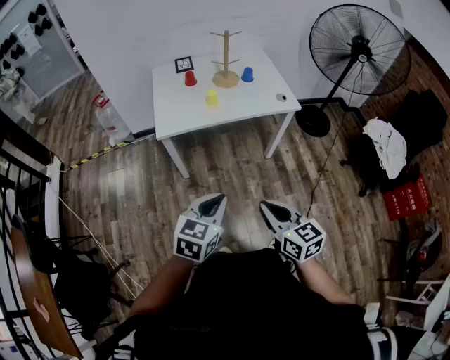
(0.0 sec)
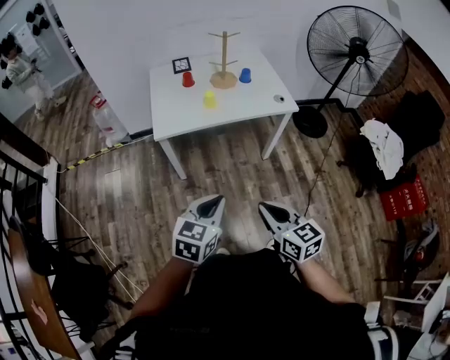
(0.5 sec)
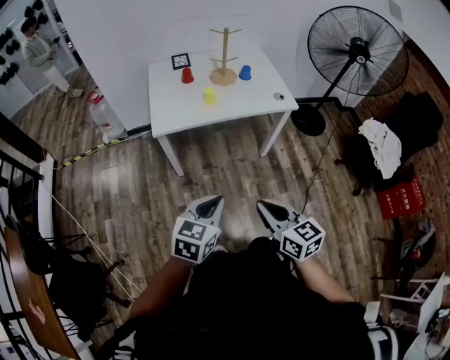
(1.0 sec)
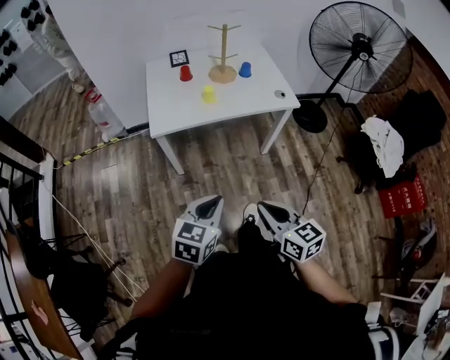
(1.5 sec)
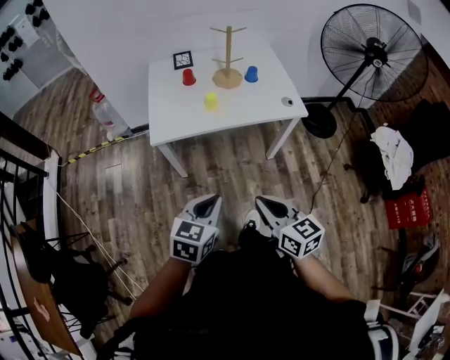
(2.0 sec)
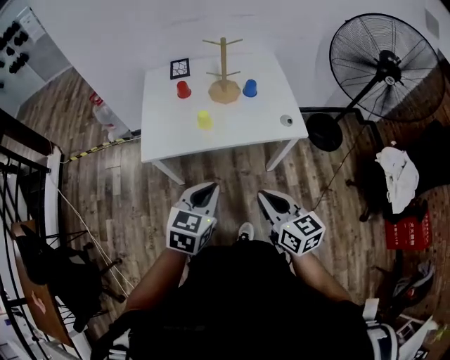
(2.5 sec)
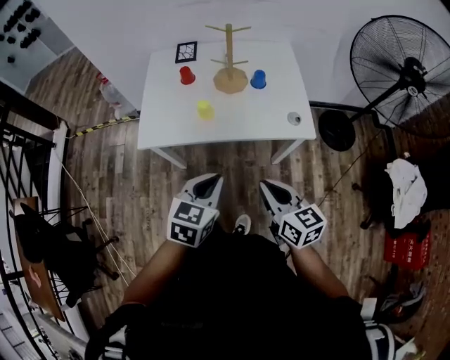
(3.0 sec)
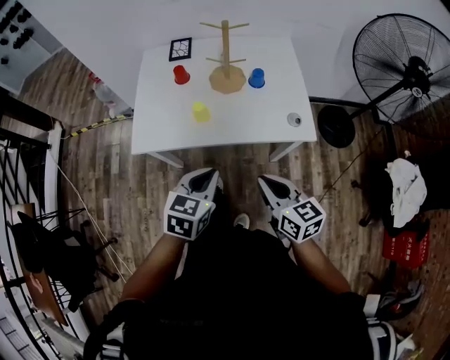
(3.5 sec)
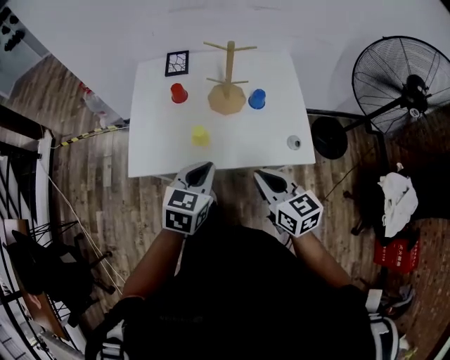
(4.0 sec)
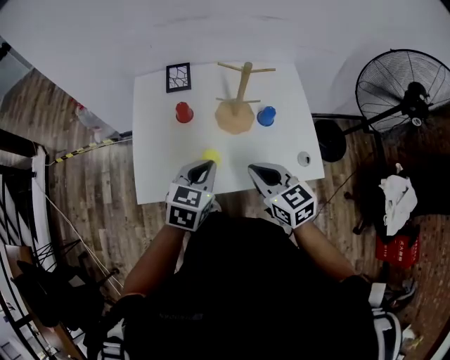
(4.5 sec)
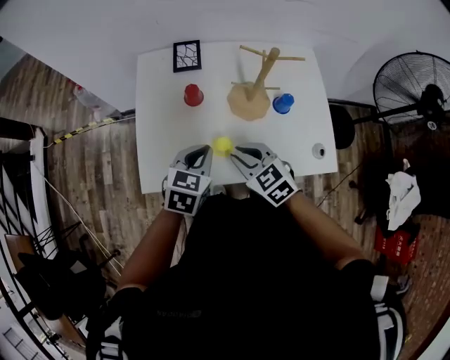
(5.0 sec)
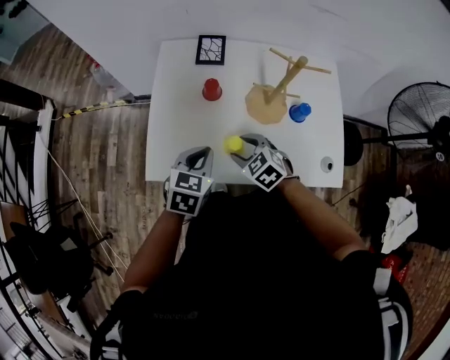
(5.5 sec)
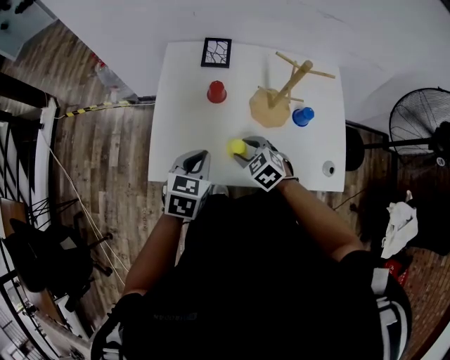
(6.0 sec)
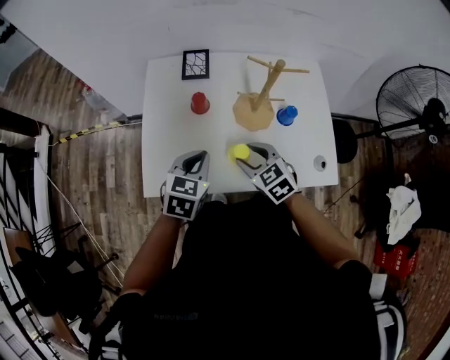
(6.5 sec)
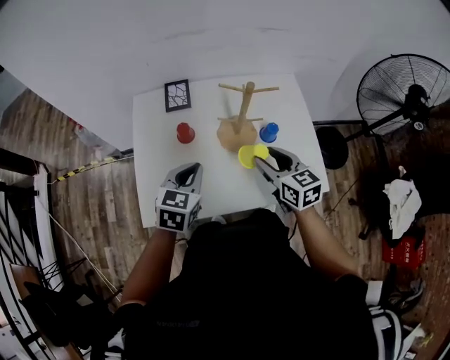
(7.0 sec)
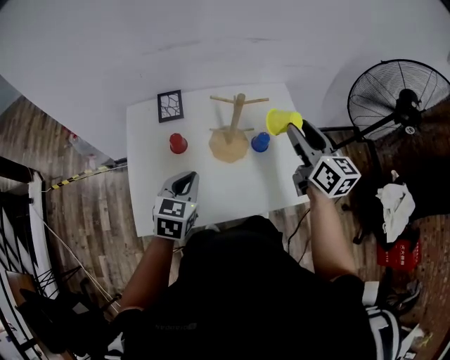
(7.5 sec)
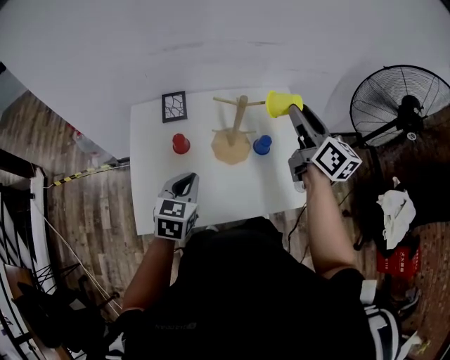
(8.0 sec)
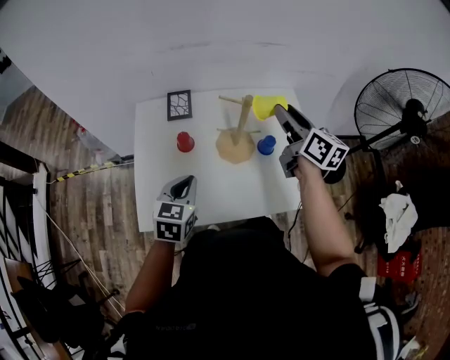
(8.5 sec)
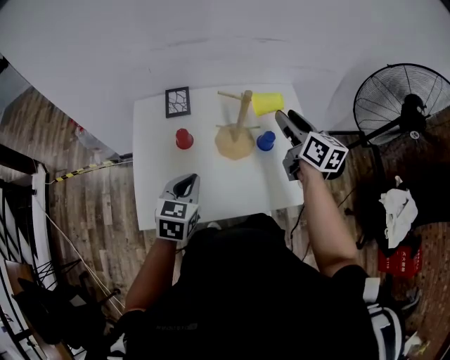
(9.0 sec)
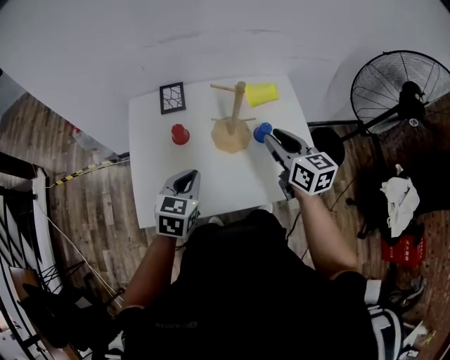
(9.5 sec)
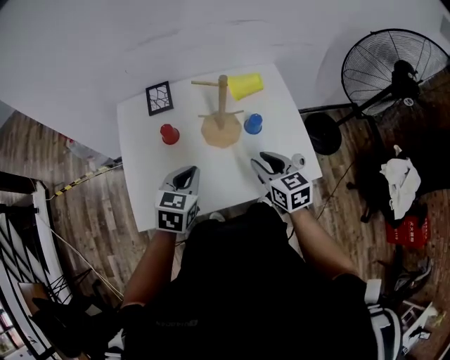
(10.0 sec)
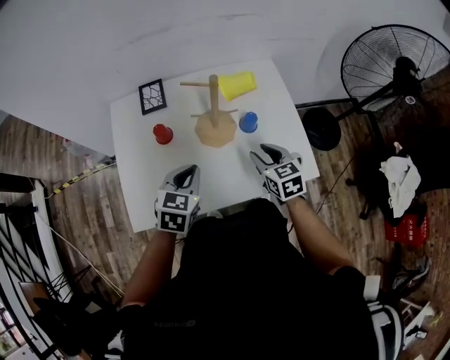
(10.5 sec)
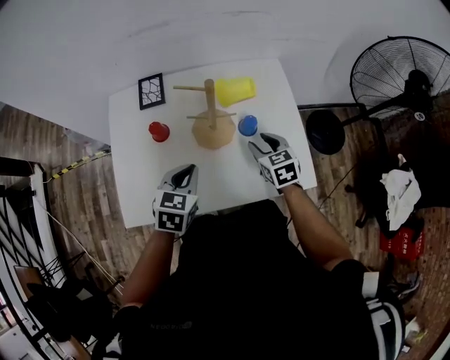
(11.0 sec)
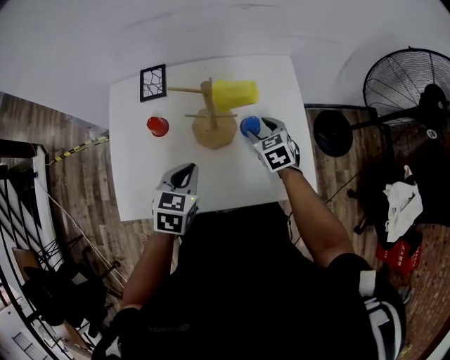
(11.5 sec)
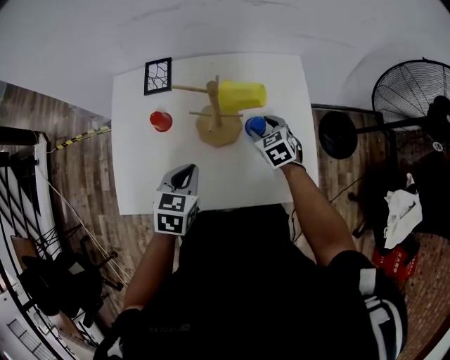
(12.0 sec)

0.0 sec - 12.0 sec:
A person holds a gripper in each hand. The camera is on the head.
0.0 sec - 2.0 sec: The two grippers go roughly 10 cm forward.
2.0 sec - 4.0 sec: The grippers both shift forward by approximately 35 cm.
4.0 sec - 6.0 sec: The right gripper travels forward, downward and to the left by roughly 30 cm, points its fingers roughly 30 degrees further downward, and opens its fingers. The left gripper goes about 20 cm forward, to the left and downward.
6.0 sec - 8.0 sec: The right gripper moves upward and to the right, some 40 cm, and points its fingers some 50 degrees further upward. Meanwhile the left gripper heads upward, to the right and forward, covering roughly 10 cm.
8.0 sec - 10.0 sec: The right gripper travels downward and backward by about 25 cm, and turns by approximately 40 degrees.
10.0 sec - 12.0 sec: The right gripper heads forward and downward, covering approximately 20 cm, turns by about 30 degrees, and opens up, while the left gripper shifts roughly 5 cm to the right.

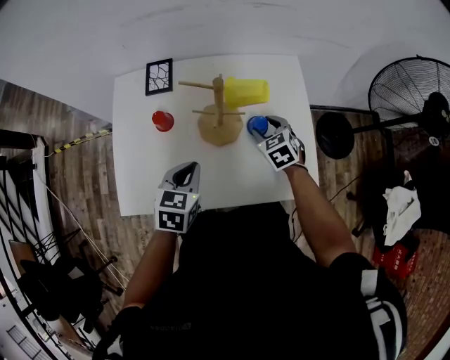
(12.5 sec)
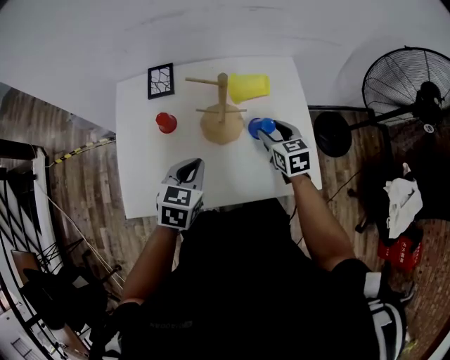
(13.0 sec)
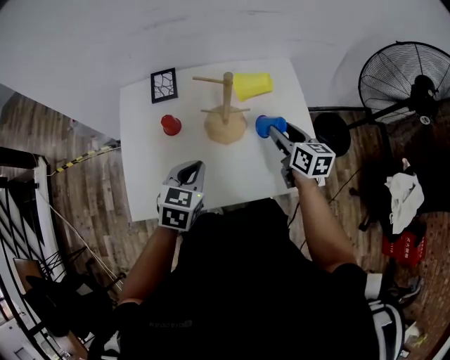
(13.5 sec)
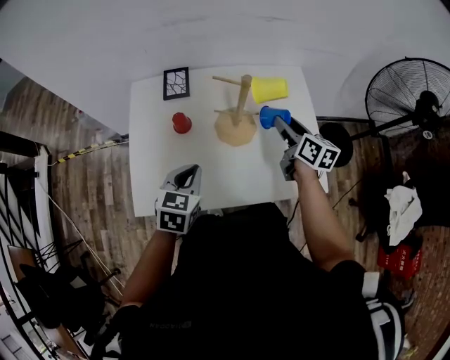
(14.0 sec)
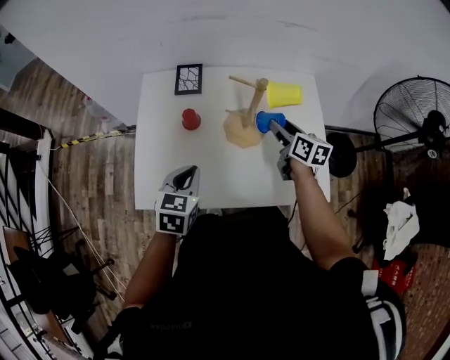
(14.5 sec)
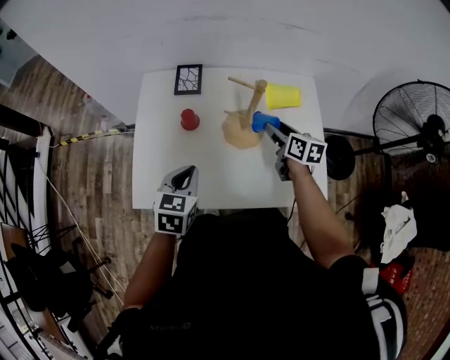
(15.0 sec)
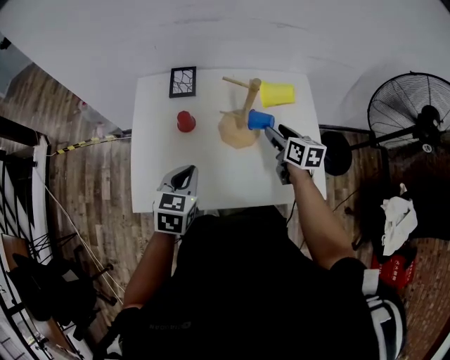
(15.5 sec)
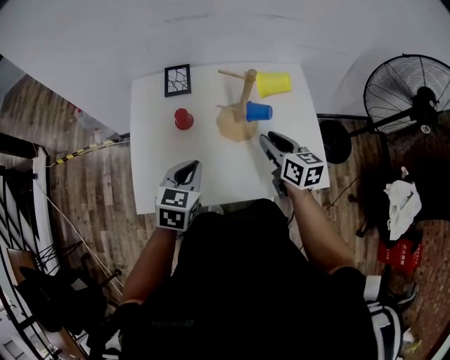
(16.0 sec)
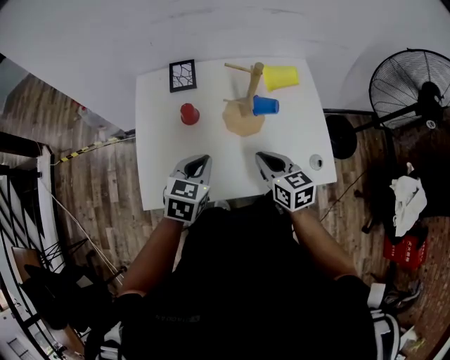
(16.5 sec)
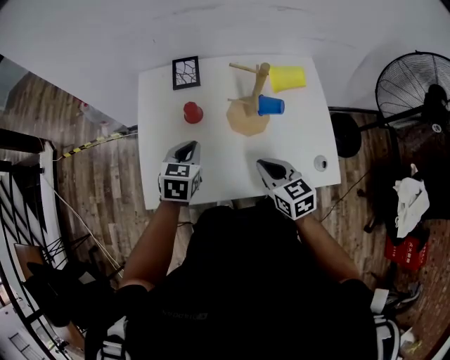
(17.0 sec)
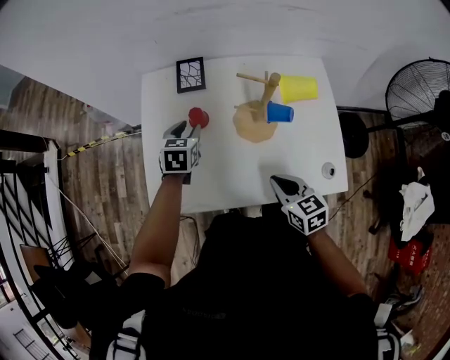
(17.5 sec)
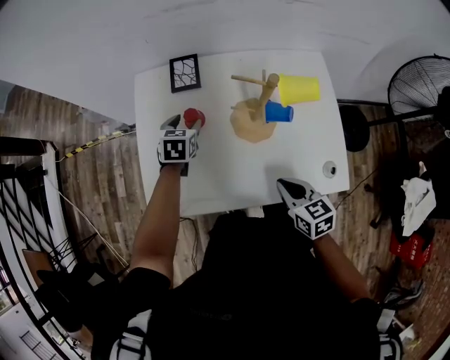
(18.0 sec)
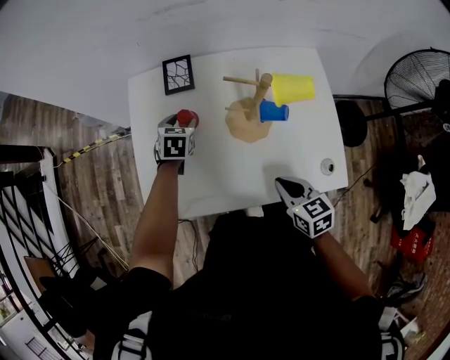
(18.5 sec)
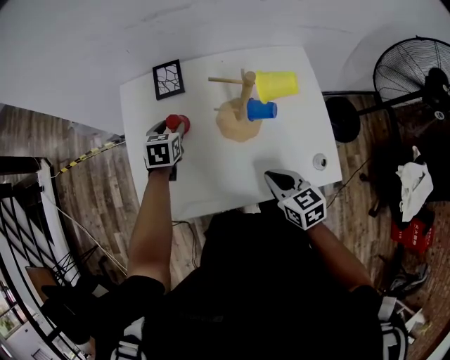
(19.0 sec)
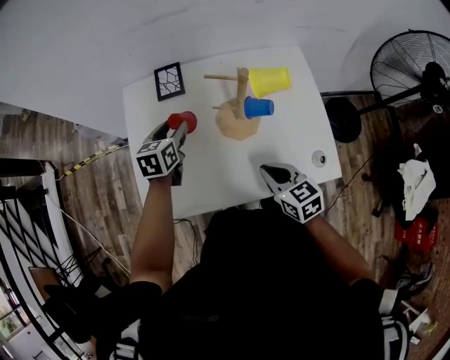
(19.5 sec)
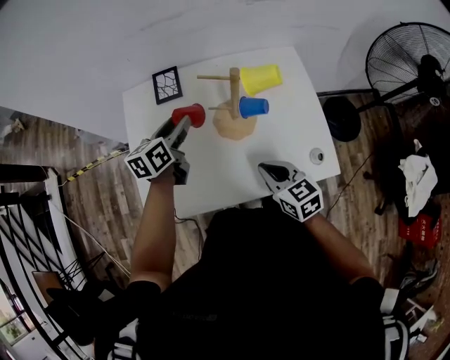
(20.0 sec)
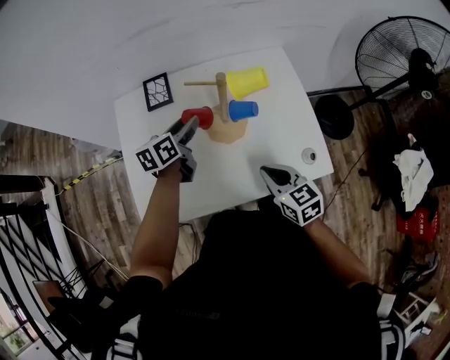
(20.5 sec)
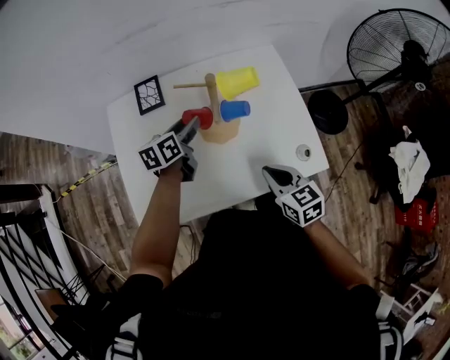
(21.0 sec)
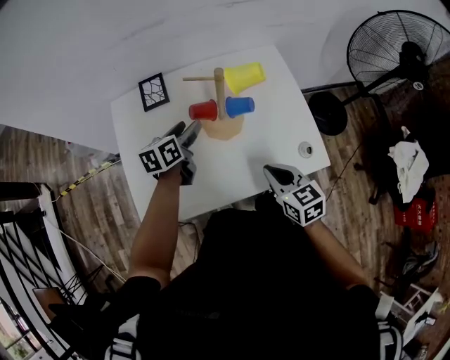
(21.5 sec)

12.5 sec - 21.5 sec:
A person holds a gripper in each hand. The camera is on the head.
12.5 sec - 14.5 sec: The left gripper goes approximately 10 cm to the left. Meanwhile the right gripper is displaced upward by approximately 10 cm, and rolls clockwise, seen from behind, by about 50 degrees.
14.5 sec - 17.0 sec: The right gripper travels backward and to the left by about 20 cm, swivels roughly 30 degrees, and closes up; the left gripper shifts approximately 5 cm forward.
17.0 sec - 19.5 sec: The left gripper is displaced forward by some 10 cm, and opens.
19.5 sec - 21.5 sec: The right gripper changes place by about 5 cm; the left gripper shifts roughly 10 cm to the right, and rotates about 20 degrees.

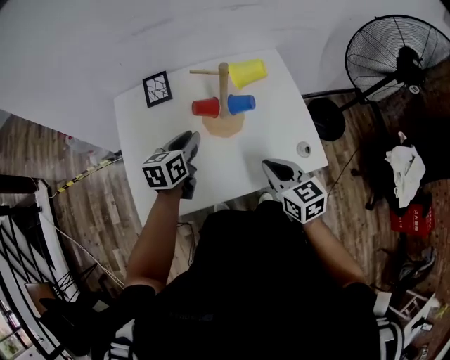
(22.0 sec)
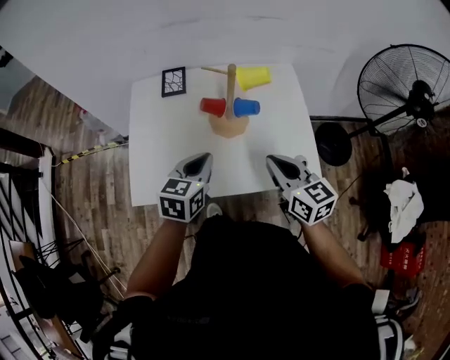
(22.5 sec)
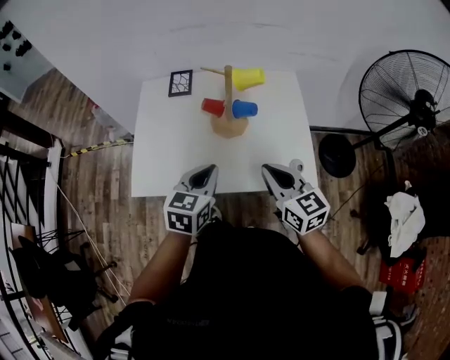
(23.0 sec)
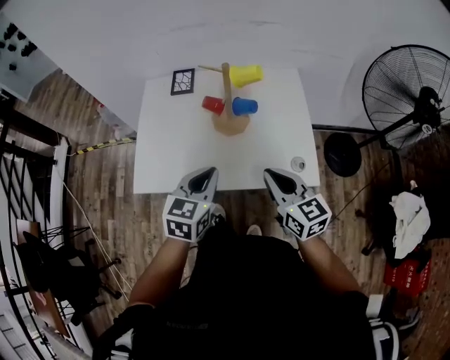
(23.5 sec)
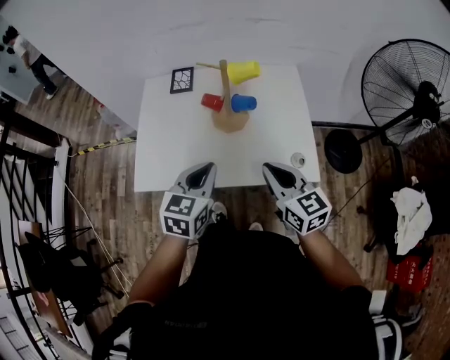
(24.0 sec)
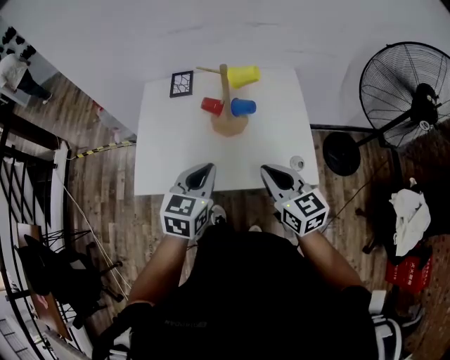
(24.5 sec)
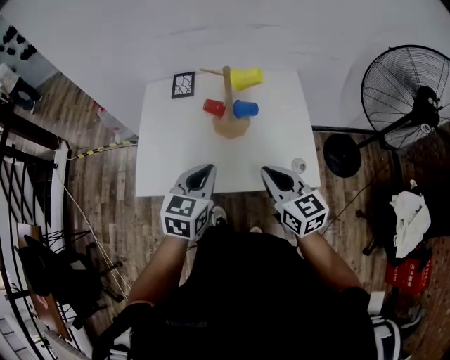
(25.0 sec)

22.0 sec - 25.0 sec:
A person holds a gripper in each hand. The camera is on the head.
22.0 sec - 23.5 sec: The right gripper moves upward, backward and to the right, roughly 10 cm; the left gripper is displaced backward and to the right by about 20 cm, turns by roughly 20 degrees, and closes.
23.5 sec - 25.0 sec: There are only small adjustments of the grippers.

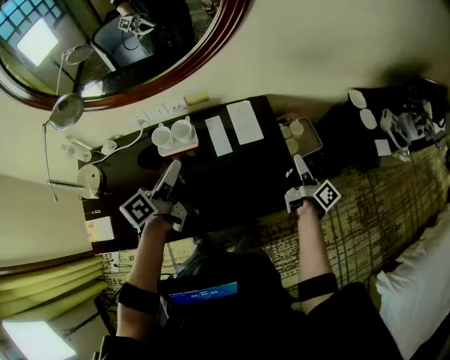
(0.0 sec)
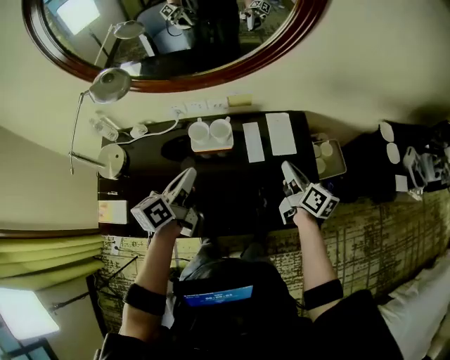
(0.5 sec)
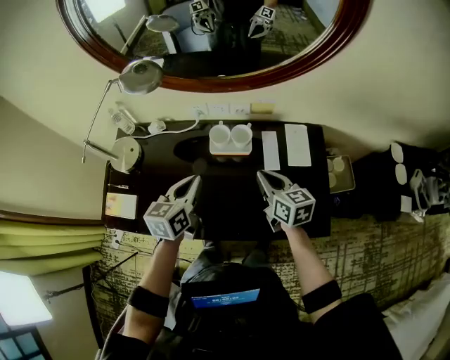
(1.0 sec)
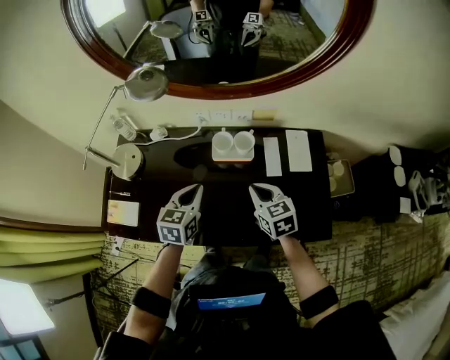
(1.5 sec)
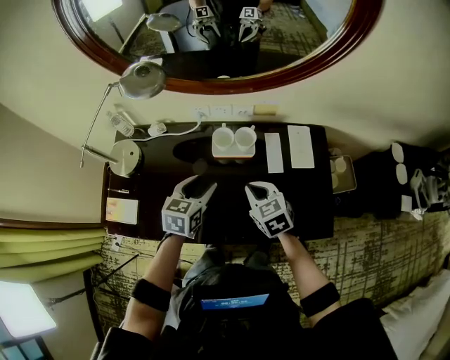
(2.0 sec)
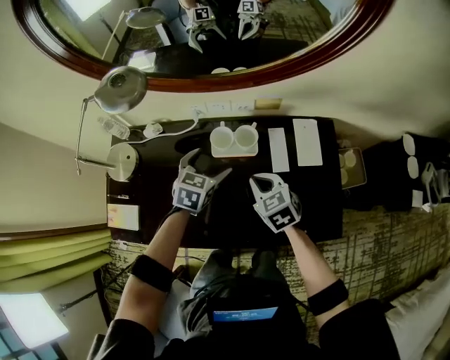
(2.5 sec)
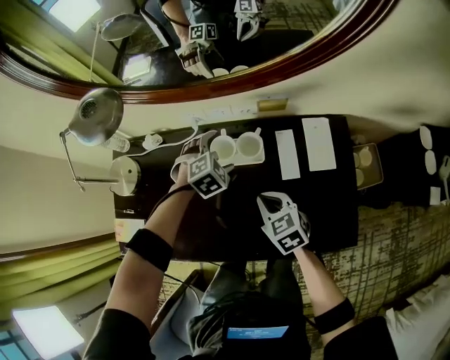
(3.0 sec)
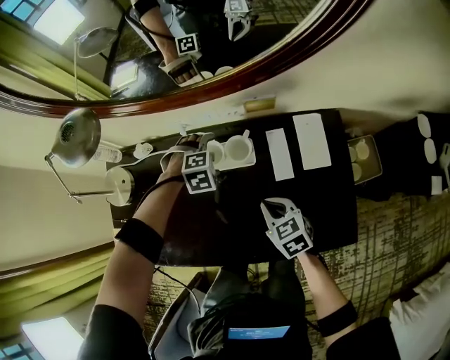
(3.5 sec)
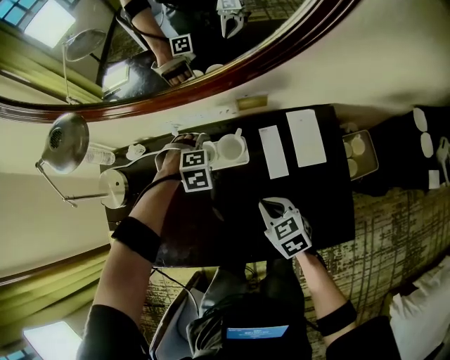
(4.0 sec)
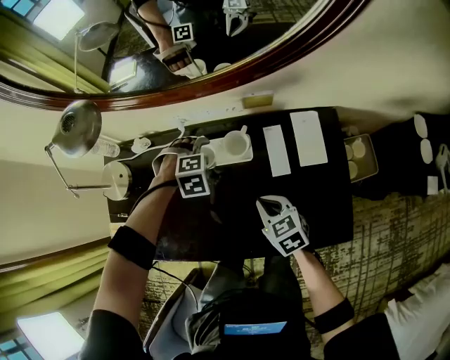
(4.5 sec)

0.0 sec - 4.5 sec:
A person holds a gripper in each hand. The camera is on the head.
0.0 sec - 2.0 sec: The left gripper heads downward, covering about 15 cm, tilts its fingers roughly 30 degrees downward, and opens up, while the right gripper shifts by roughly 35 cm, and twists some 80 degrees counterclockwise, seen from behind.
2.0 sec - 4.5 sec: The left gripper shifts by approximately 20 cm, and rotates around the line of its fingers by some 70 degrees, clockwise from behind. The right gripper is displaced downward by roughly 10 cm.
